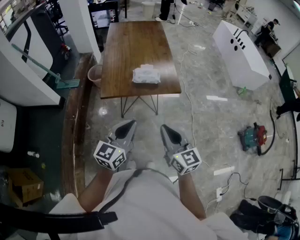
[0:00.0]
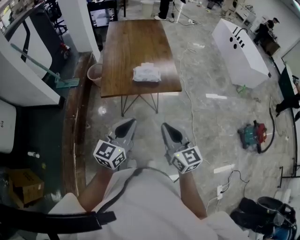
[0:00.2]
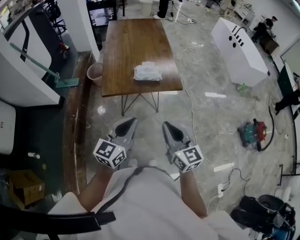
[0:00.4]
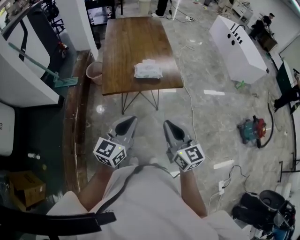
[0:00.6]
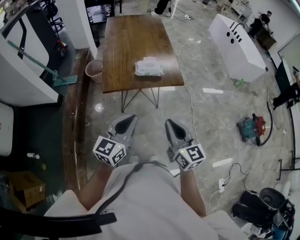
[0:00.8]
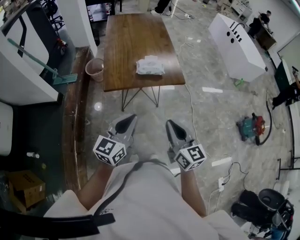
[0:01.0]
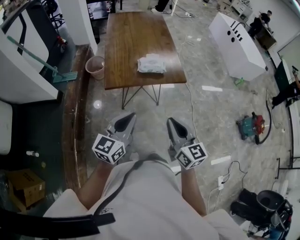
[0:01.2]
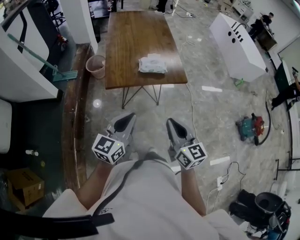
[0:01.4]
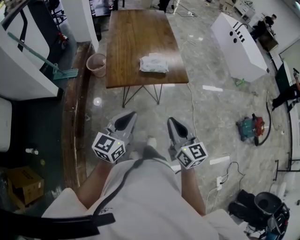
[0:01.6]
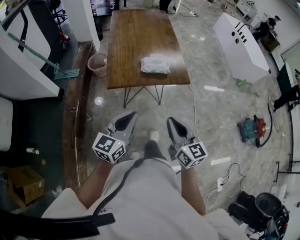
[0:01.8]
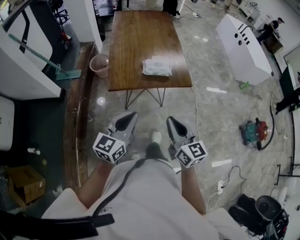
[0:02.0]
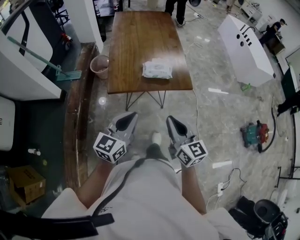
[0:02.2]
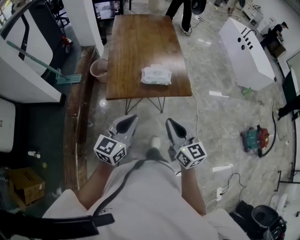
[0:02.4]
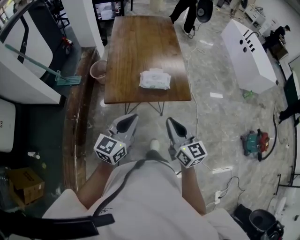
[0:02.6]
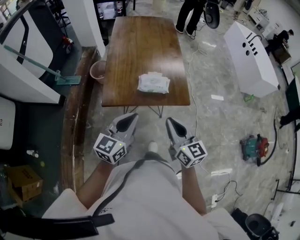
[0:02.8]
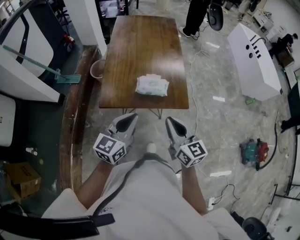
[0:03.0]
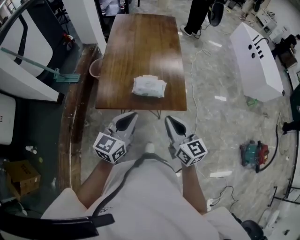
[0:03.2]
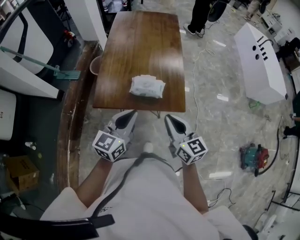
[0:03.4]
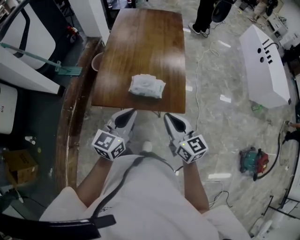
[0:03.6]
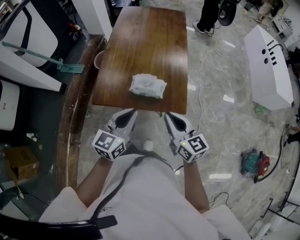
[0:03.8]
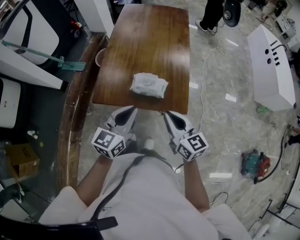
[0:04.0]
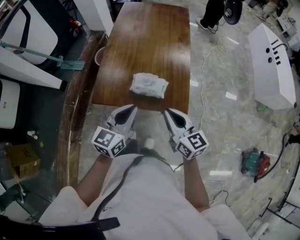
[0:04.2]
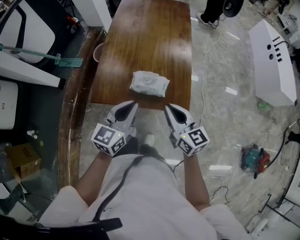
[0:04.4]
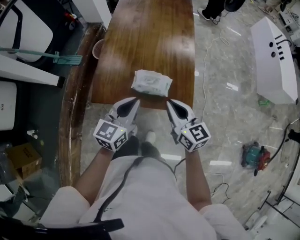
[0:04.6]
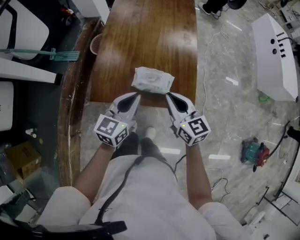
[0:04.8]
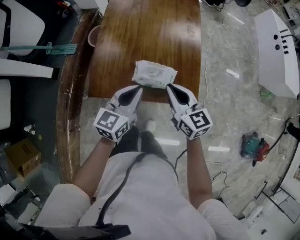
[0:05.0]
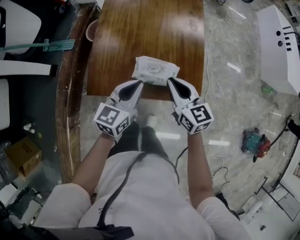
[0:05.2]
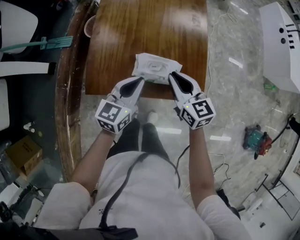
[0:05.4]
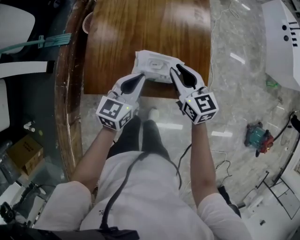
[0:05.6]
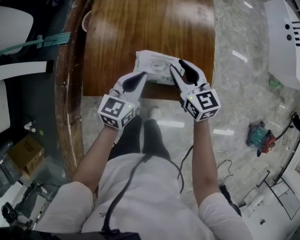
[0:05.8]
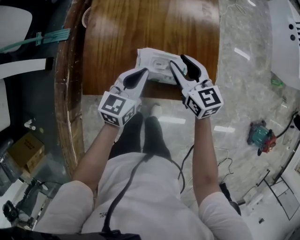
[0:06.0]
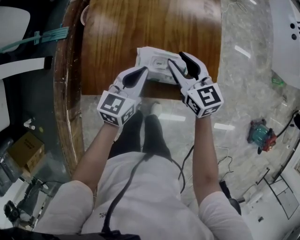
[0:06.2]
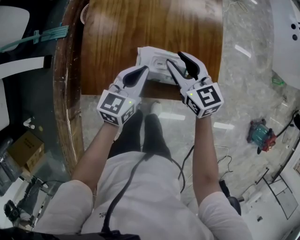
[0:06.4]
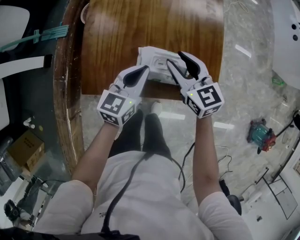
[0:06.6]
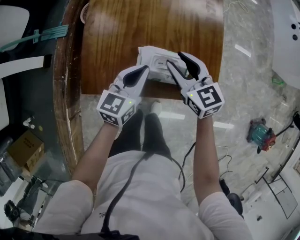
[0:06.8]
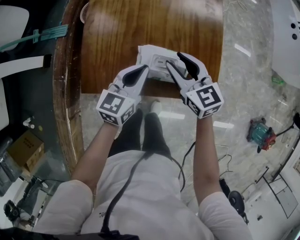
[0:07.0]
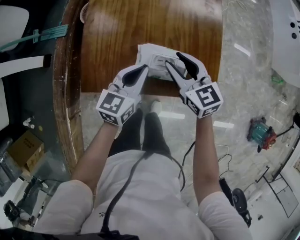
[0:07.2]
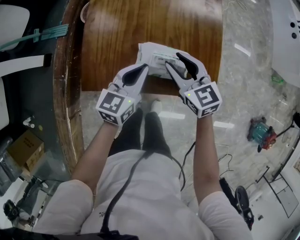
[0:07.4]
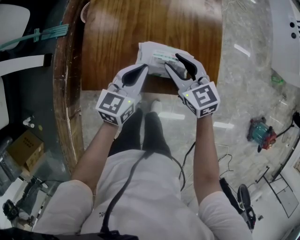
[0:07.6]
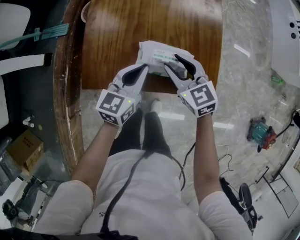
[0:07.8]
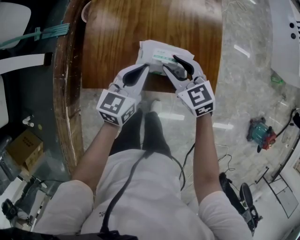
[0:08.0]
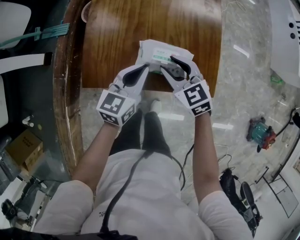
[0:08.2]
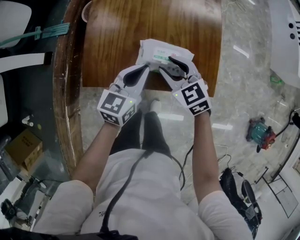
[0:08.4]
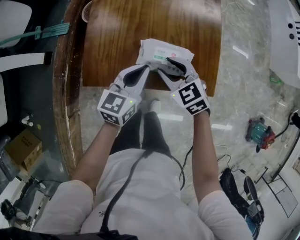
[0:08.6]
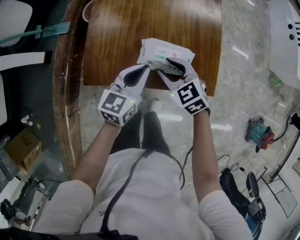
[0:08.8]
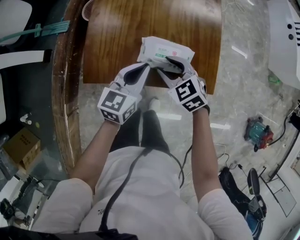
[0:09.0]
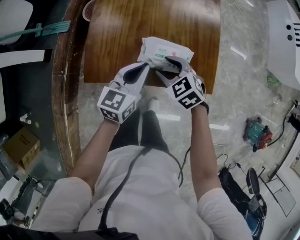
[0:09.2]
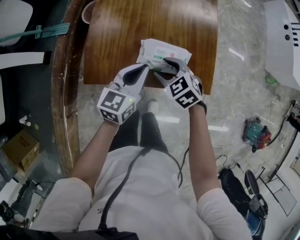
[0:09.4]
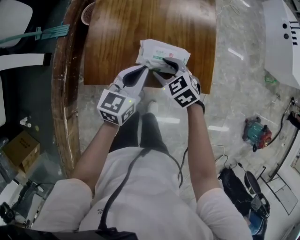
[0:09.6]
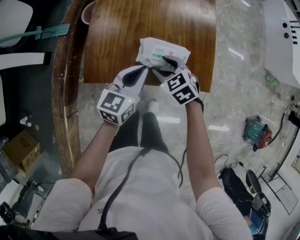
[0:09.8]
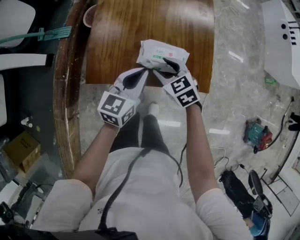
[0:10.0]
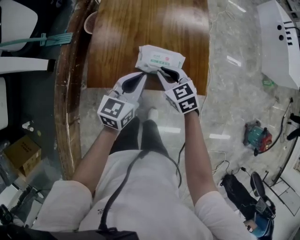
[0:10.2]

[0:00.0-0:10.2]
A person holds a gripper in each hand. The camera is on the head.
0:00.0 to 0:01.4: Both grippers travel together to the left, roughly 5 cm.
0:01.4 to 0:03.0: Both grippers travel together forward, approximately 20 cm.
0:03.0 to 0:04.4: Both grippers move forward and to the right, approximately 15 cm.
0:04.4 to 0:05.8: The left gripper moves downward and forward, about 20 cm, while the right gripper goes roughly 20 cm forward and downward, and opens up.
0:05.8 to 0:07.2: The grippers move only a little.
0:07.2 to 0:08.8: The right gripper is displaced backward by about 5 cm, and changes its angle by roughly 30 degrees.
0:08.8 to 0:10.2: The right gripper closes up; the left gripper moves approximately 5 cm.

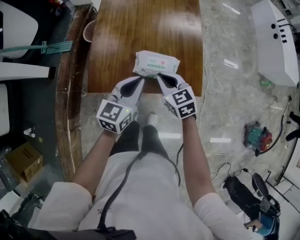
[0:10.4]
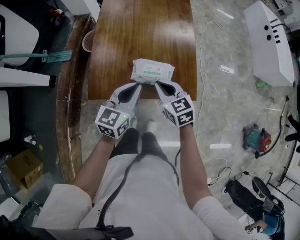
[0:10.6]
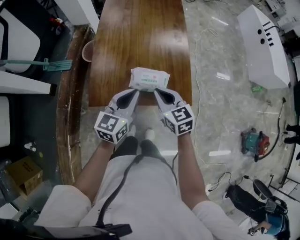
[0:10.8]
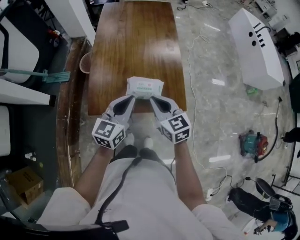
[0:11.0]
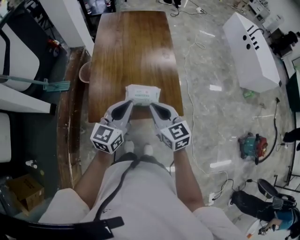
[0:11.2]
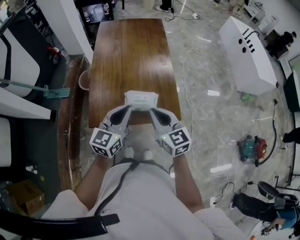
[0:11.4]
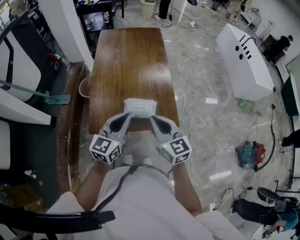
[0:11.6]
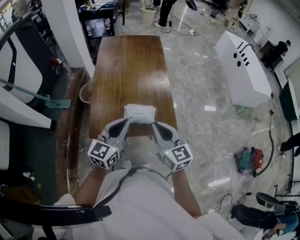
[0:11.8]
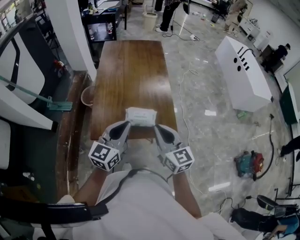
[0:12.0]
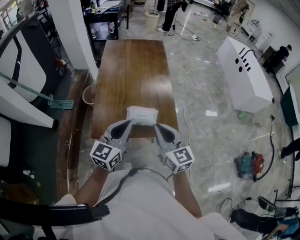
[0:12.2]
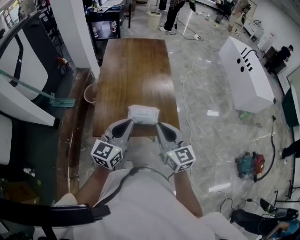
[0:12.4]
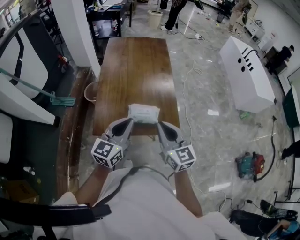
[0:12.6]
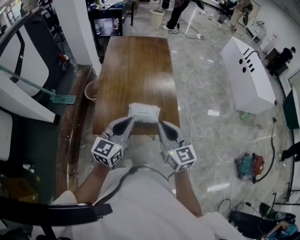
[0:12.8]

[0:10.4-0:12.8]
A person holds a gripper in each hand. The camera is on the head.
0:10.4 to 0:11.6: The right gripper moves upward and backward, some 25 cm, and turns by about 30 degrees. Meanwhile the left gripper is displaced upward by about 15 cm.
0:11.6 to 0:12.8: The grippers stay close to where they were, moving slightly.

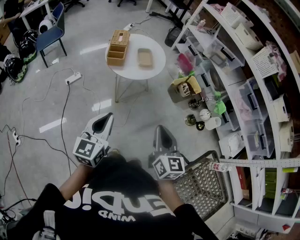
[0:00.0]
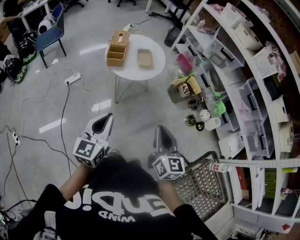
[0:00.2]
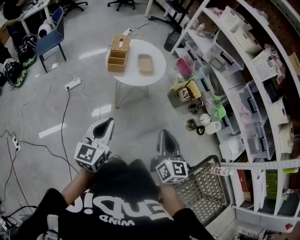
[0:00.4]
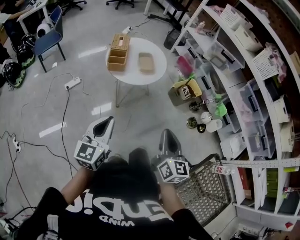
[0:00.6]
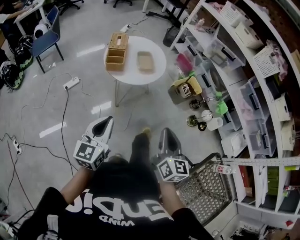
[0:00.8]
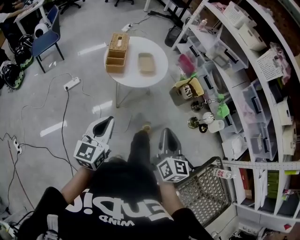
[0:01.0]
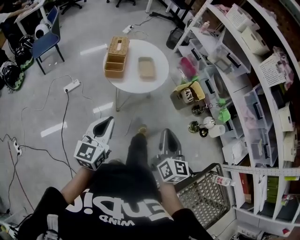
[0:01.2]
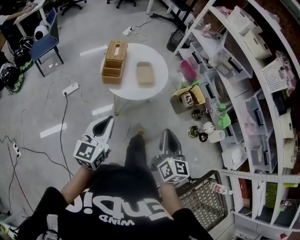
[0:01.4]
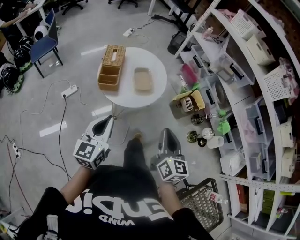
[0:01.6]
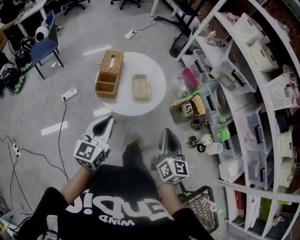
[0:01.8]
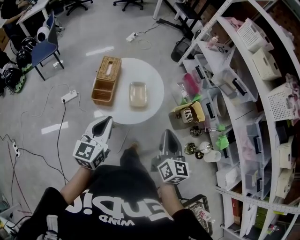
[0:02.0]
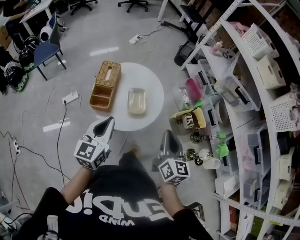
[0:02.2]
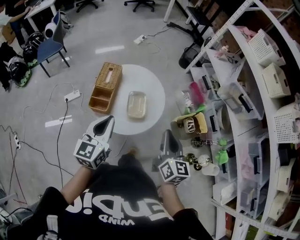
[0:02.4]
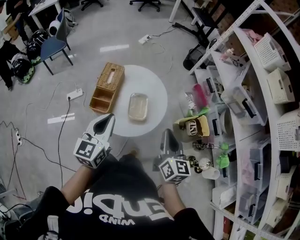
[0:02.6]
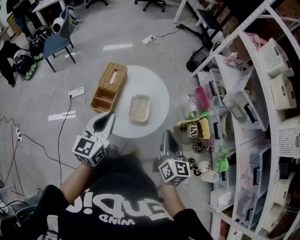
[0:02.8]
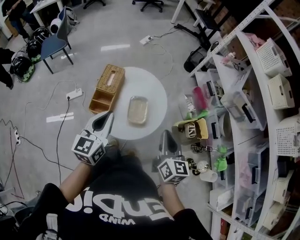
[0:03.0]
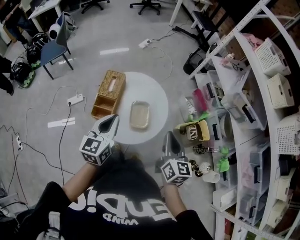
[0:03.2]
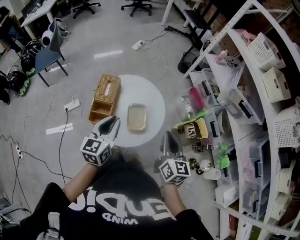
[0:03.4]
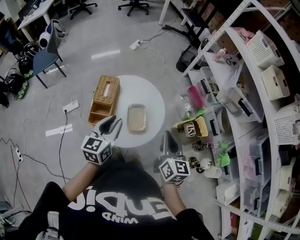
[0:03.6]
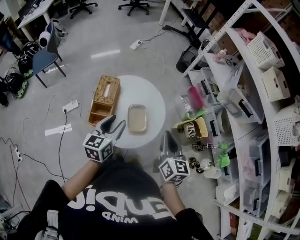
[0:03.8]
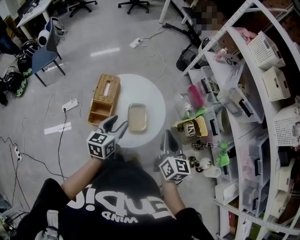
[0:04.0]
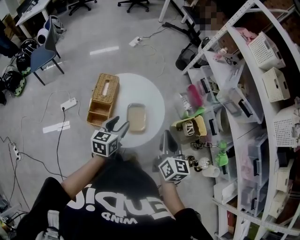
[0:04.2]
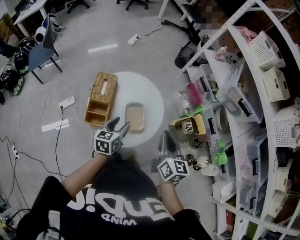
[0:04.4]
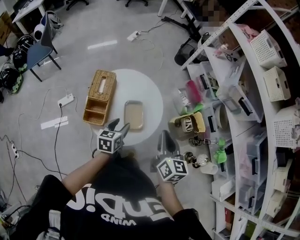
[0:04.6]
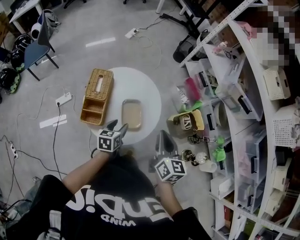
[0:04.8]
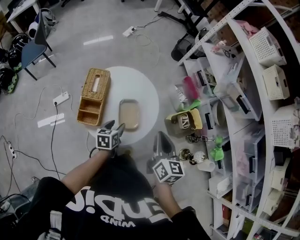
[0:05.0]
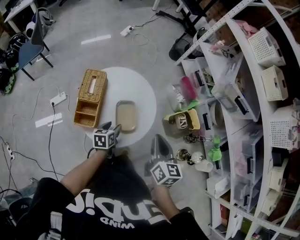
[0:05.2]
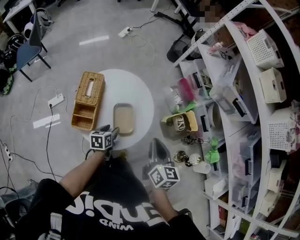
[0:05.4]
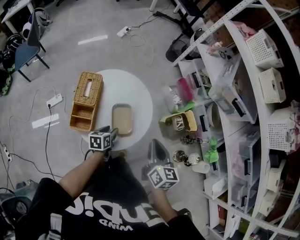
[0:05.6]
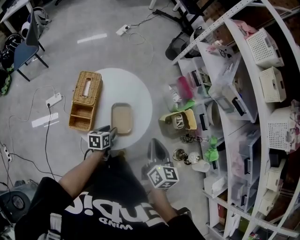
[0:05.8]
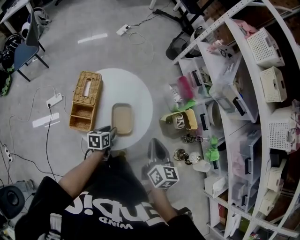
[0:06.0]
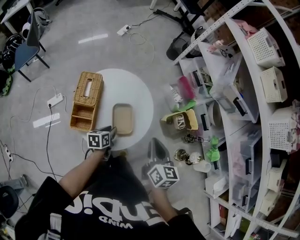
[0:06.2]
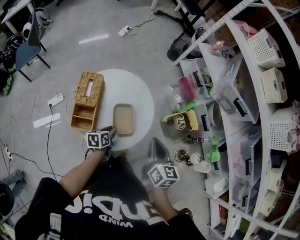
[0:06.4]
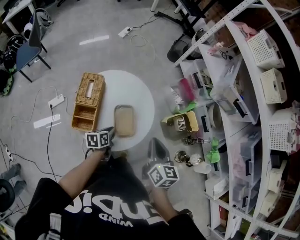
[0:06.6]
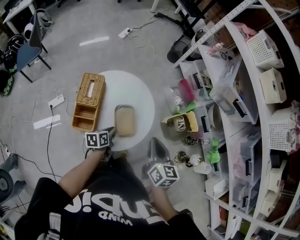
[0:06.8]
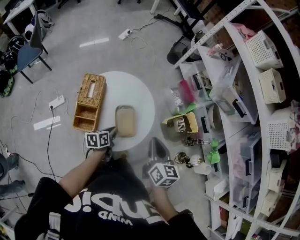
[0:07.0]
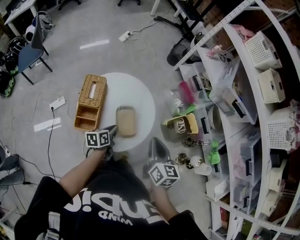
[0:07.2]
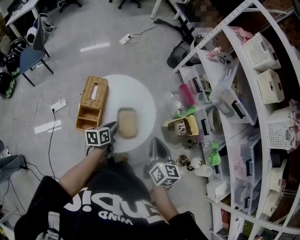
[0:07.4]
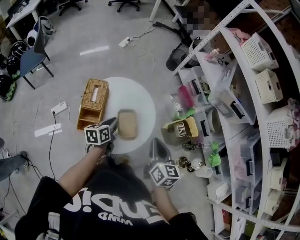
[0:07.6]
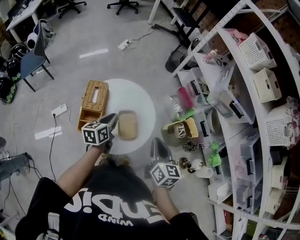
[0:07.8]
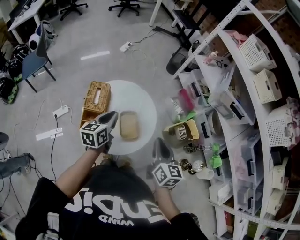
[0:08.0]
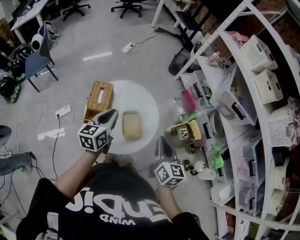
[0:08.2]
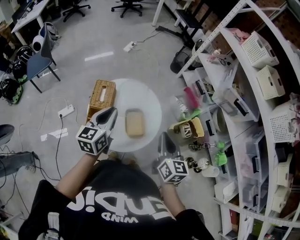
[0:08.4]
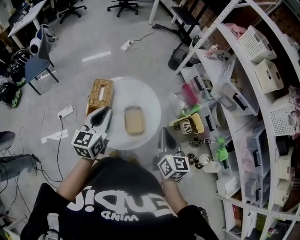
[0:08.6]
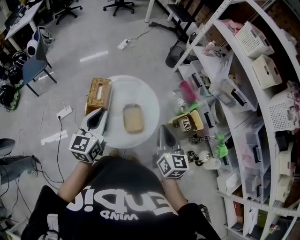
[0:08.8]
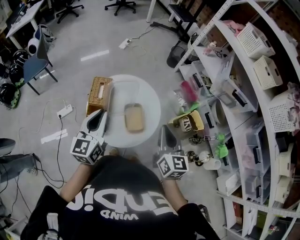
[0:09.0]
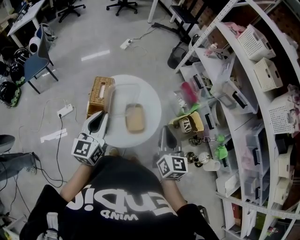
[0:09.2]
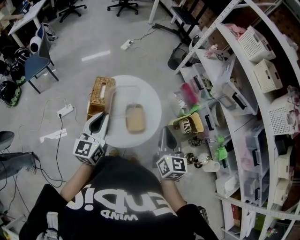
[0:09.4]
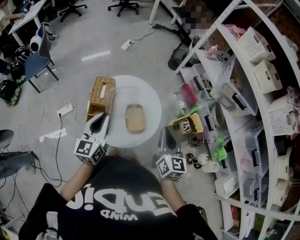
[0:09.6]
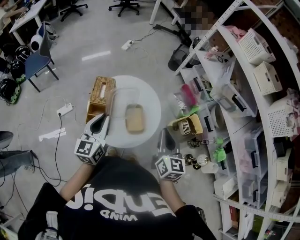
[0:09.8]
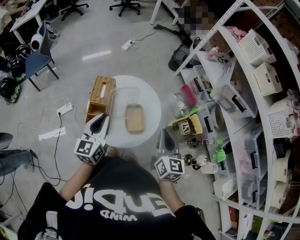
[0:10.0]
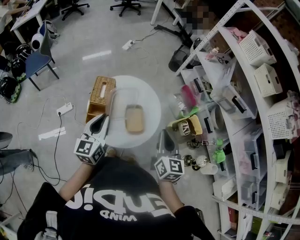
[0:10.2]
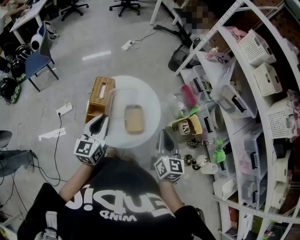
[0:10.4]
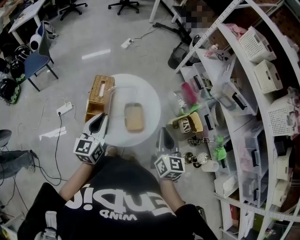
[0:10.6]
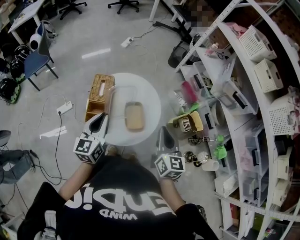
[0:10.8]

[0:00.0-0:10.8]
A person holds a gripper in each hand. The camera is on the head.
0:00.0 to 0:01.6: The two grippers go approximately 25 cm forward.
0:01.6 to 0:03.0: Both grippers move forward, roughly 25 cm.
0:03.0 to 0:04.6: The left gripper moves downward, approximately 20 cm, changes its angle by some 30 degrees, and opens its fingers.
0:04.6 to 0:06.2: The left gripper is displaced downward by approximately 10 cm, swivels approximately 20 degrees, and closes.
0:06.2 to 0:07.8: The left gripper is displaced upward by about 15 cm, and turns by roughly 20 degrees.
0:07.8 to 0:09.2: The left gripper heads upward and backward, covering about 15 cm, and swivels about 30 degrees, while the right gripper is displaced upward by approximately 5 cm.
0:09.2 to 0:10.8: The grippers make only small movements.
